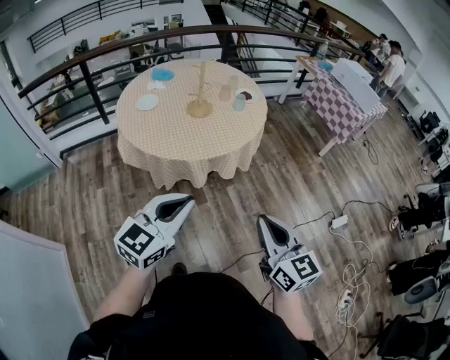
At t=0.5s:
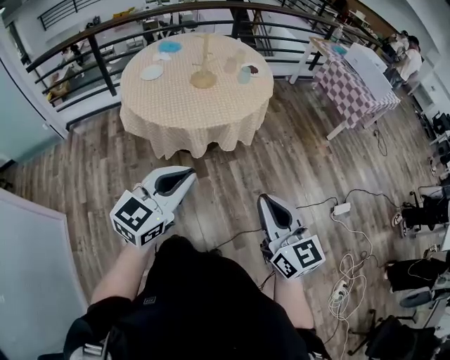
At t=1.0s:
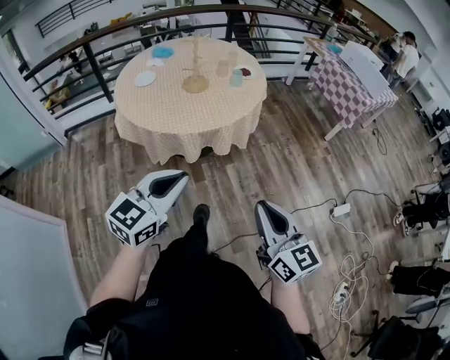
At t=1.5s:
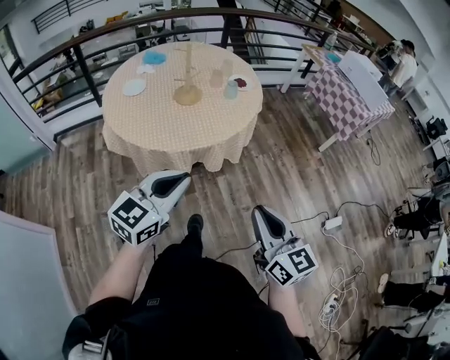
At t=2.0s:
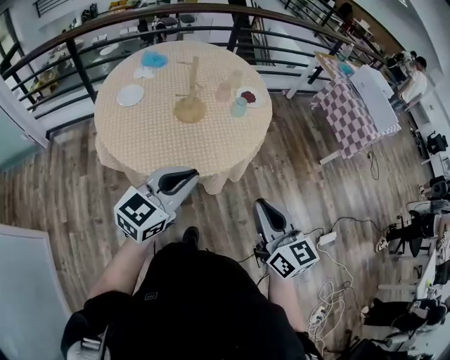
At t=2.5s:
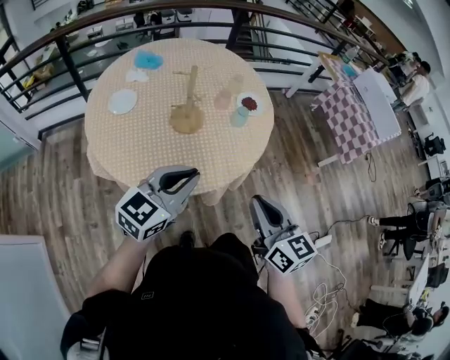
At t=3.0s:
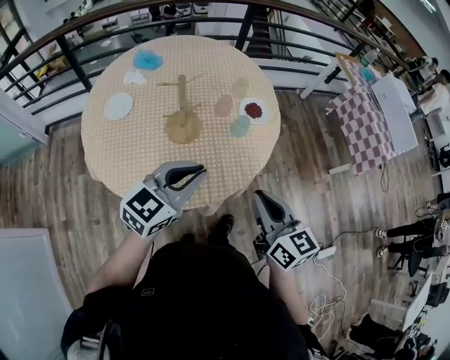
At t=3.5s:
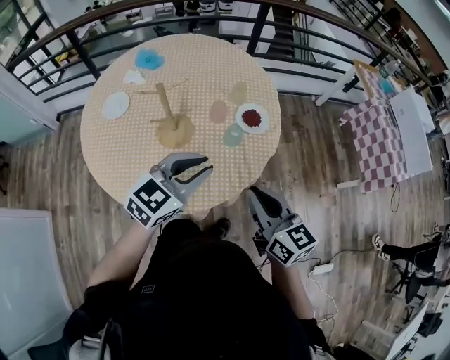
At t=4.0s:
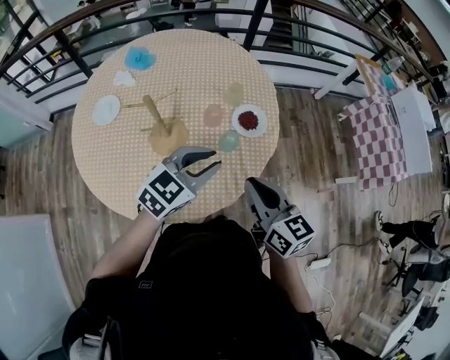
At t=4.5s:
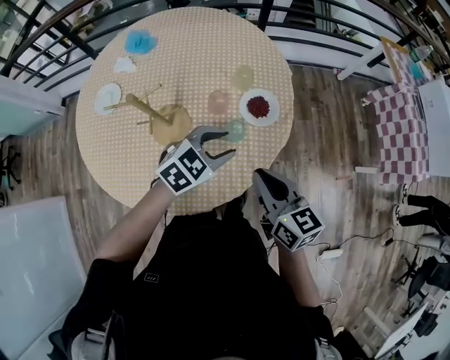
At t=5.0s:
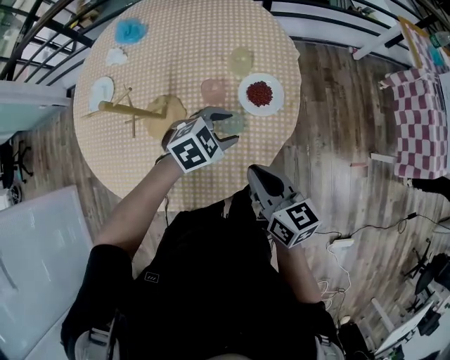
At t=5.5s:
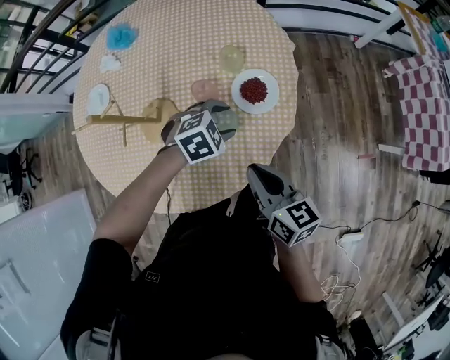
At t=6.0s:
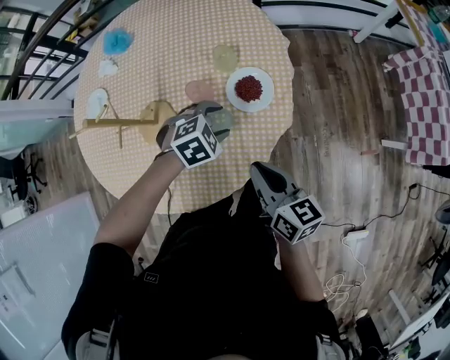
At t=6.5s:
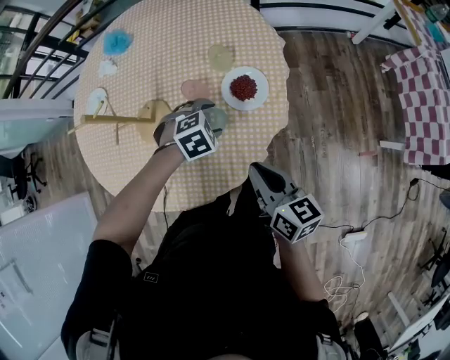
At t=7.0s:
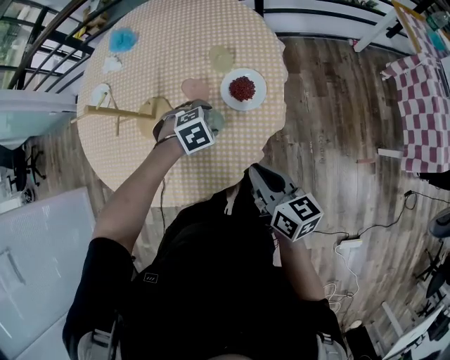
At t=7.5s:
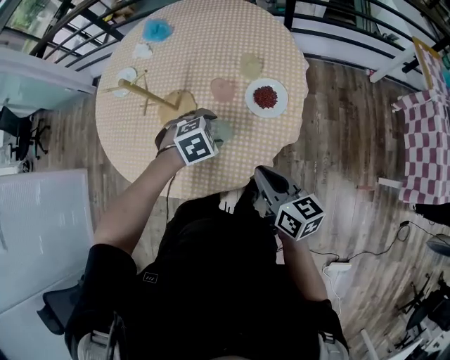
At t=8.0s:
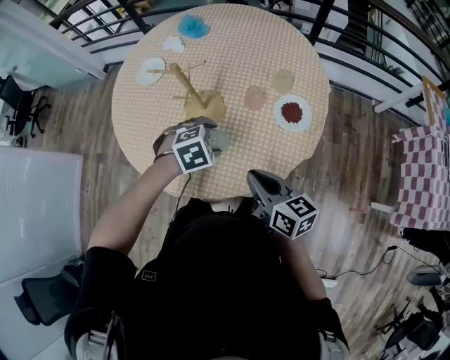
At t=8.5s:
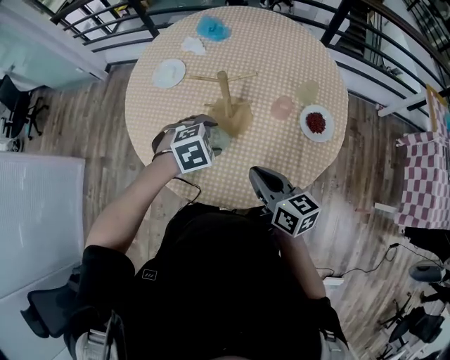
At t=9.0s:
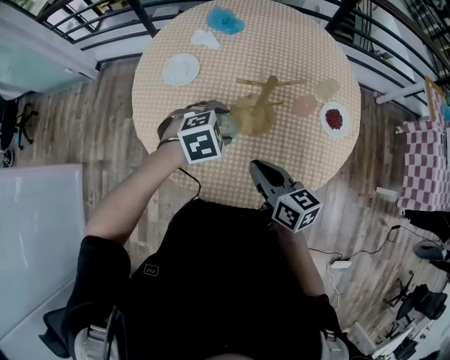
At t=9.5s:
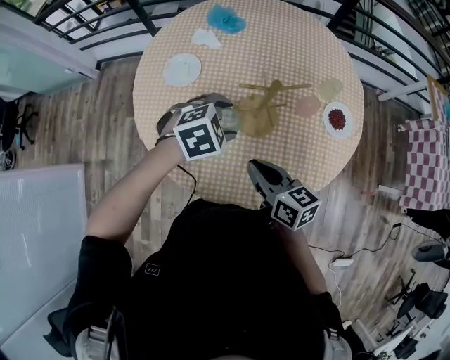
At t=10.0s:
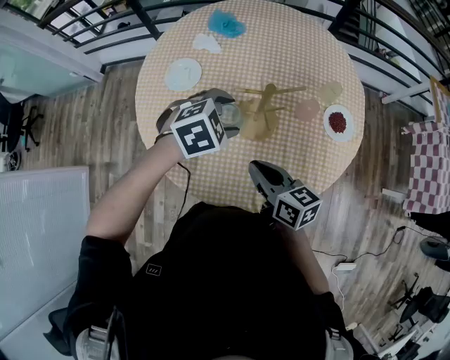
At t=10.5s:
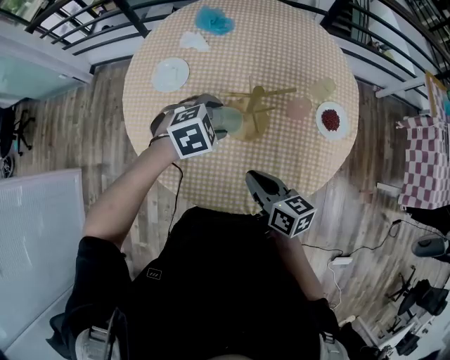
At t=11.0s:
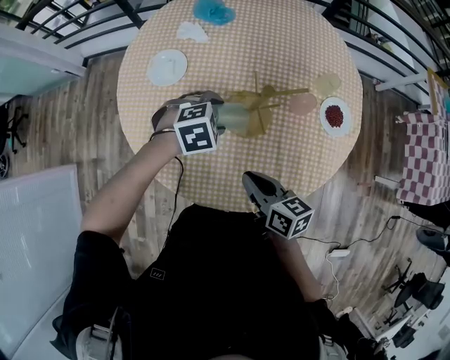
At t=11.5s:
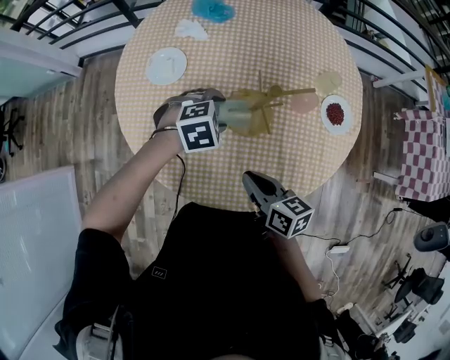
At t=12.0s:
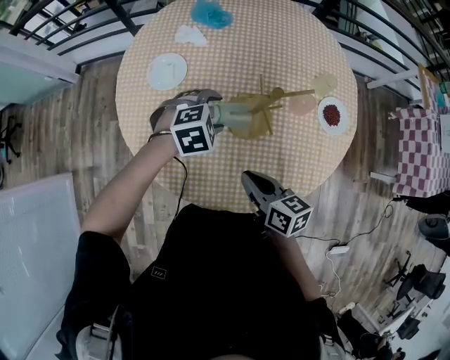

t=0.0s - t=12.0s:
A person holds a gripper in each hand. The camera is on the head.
t=0.0s - t=2.0s: Both grippers move forward, some 25 cm.
t=2.0s - t=4.0s: Both grippers travel together forward, about 35 cm.
t=4.0s - t=6.0s: The left gripper heads downward and forward, covering approximately 25 cm, points its fingers about 40 degrees further downward, and opens up. The right gripper goes about 20 cm downward, to the right and forward.
t=6.0s - t=8.0s: The right gripper moves roughly 15 cm, and changes its angle by about 20 degrees, while the left gripper shifts by approximately 20 cm.
t=8.0s - t=10.0s: The right gripper travels to the left by approximately 25 cm, while the left gripper heads to the left, forward and upward, covering some 20 cm.
t=10.0s - t=12.0s: The right gripper shifts by approximately 5 cm. The left gripper goes roughly 10 cm downward.

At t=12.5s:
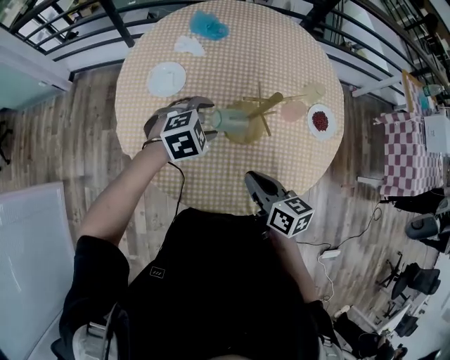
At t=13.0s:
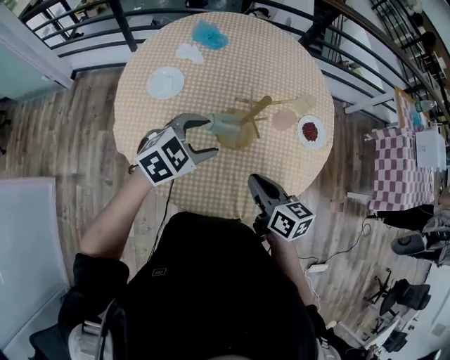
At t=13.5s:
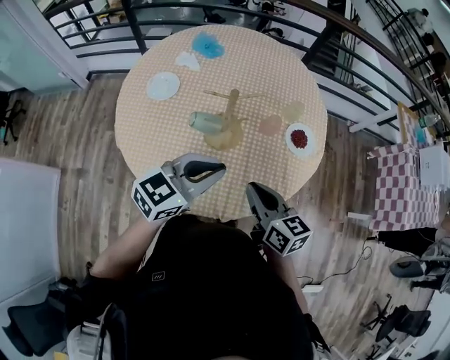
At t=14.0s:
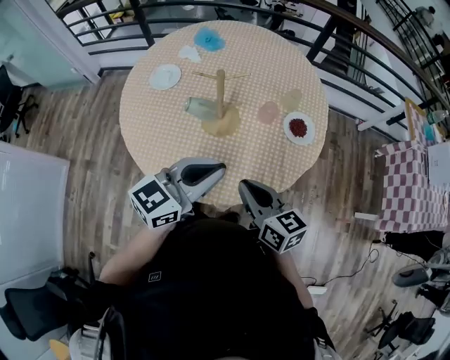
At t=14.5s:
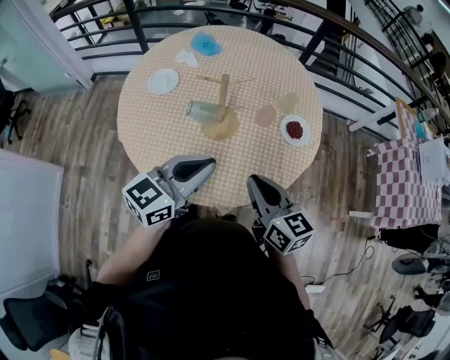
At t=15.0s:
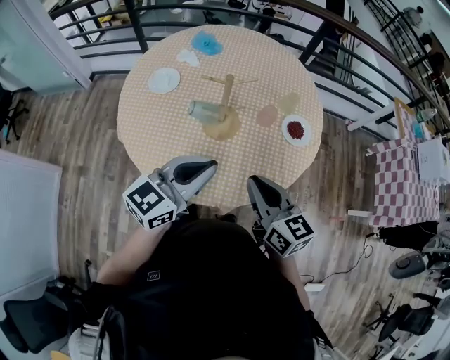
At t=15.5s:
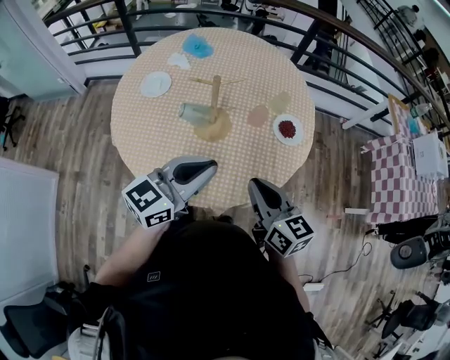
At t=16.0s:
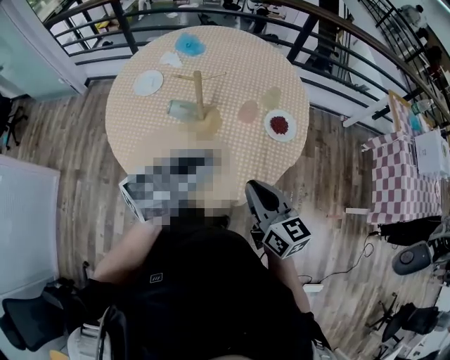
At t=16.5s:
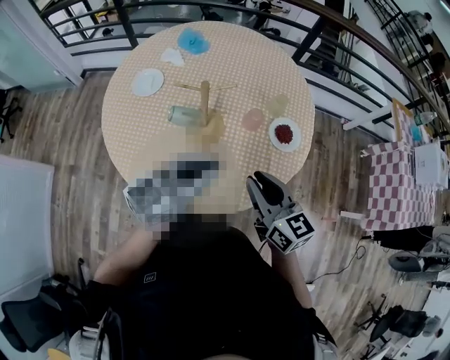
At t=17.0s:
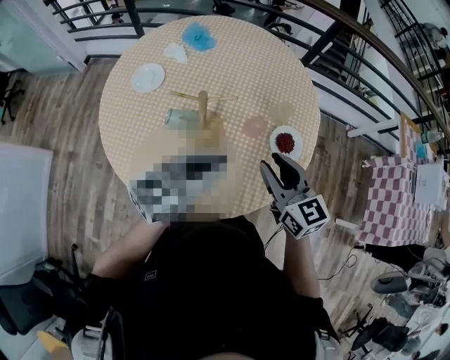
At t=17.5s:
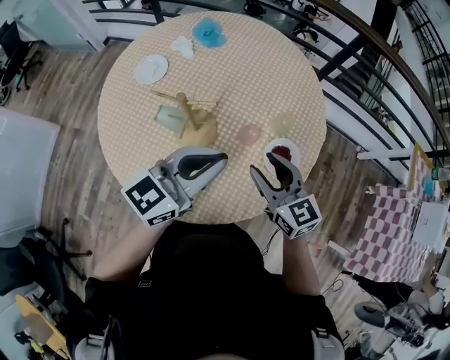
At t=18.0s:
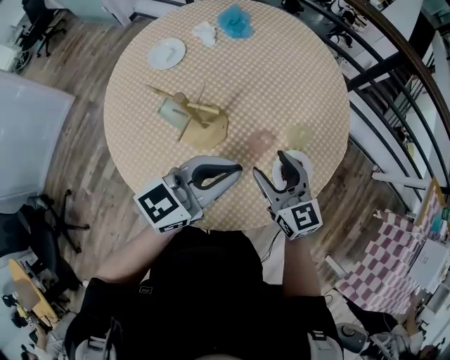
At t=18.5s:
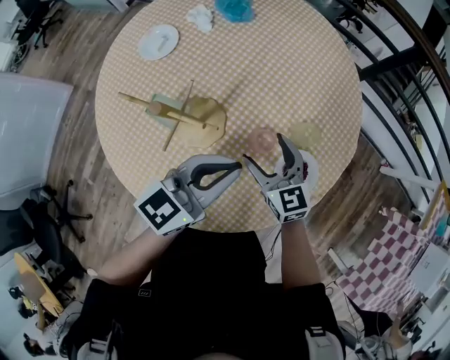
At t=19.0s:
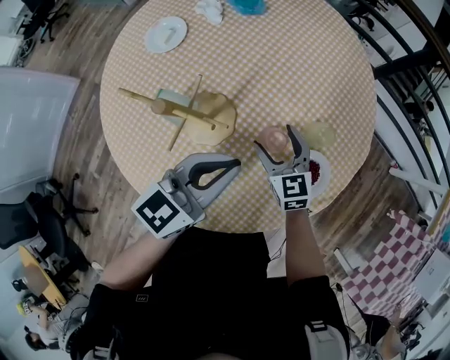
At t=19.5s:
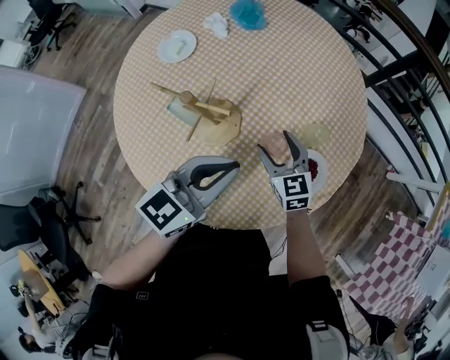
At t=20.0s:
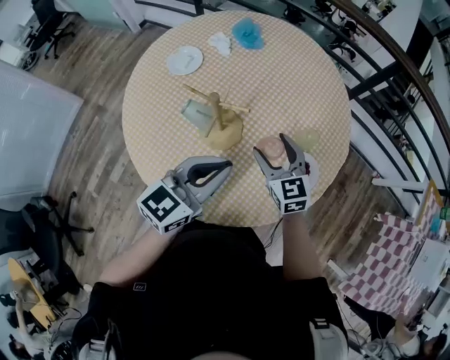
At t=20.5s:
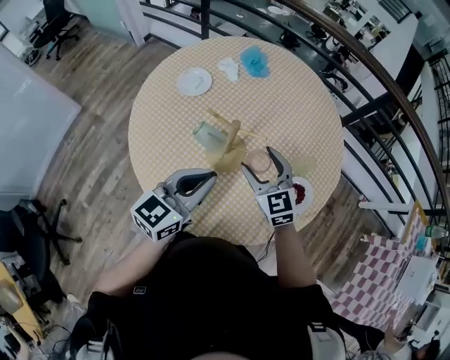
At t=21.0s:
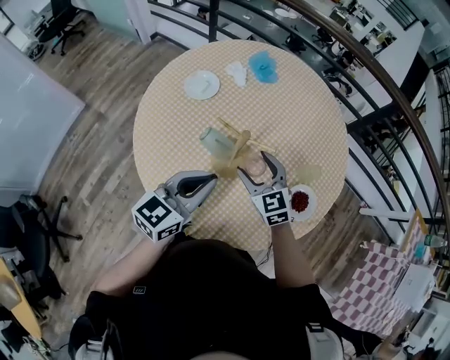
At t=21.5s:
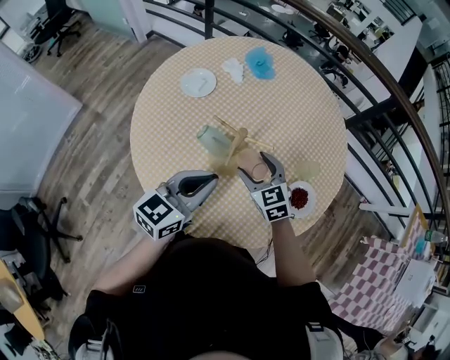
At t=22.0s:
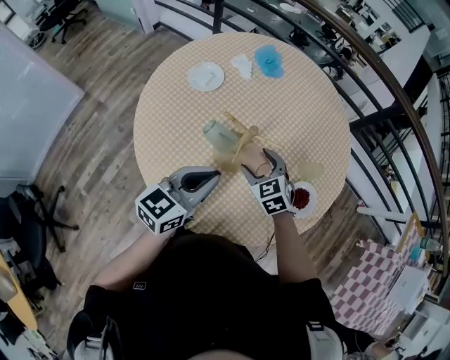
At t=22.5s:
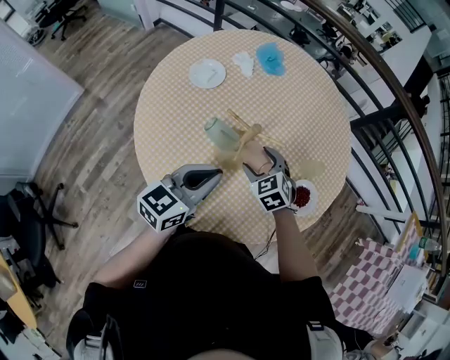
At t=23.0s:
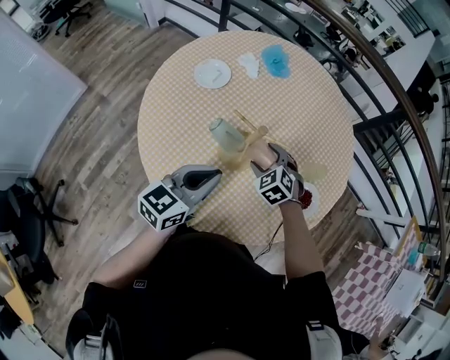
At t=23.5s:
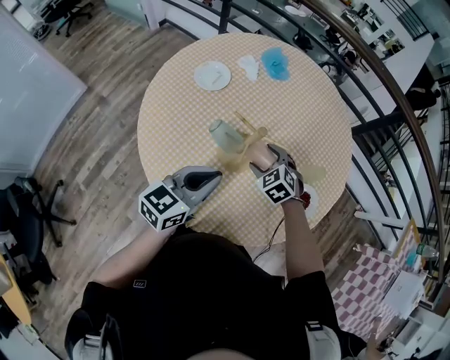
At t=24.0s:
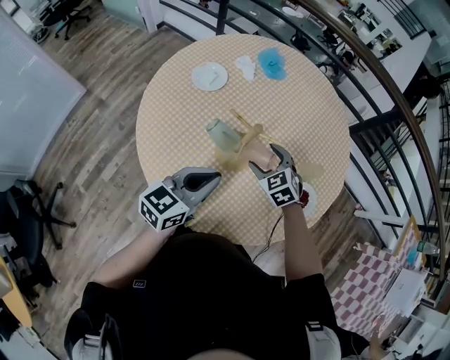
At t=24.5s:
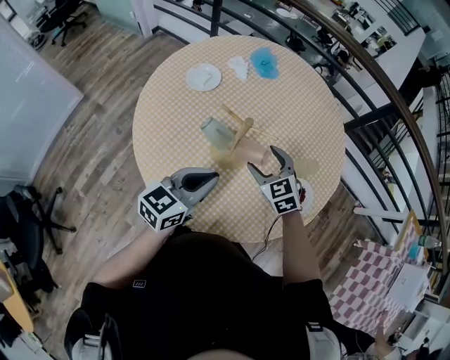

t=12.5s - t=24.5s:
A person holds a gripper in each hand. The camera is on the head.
t=12.5s - t=14.5s: The left gripper is displaced backward, upward and to the right by some 30 cm, tips its fingers upward by about 50 degrees, and closes. The right gripper travels to the right, upward and backward by some 20 cm, and changes its angle by approximately 20 degrees.
t=14.5s - t=16.5s: Both grippers travel together forward, some 5 cm.
t=16.5s - t=18.5s: The right gripper moves forward and downward, approximately 30 cm, changes its angle by roughly 30 degrees, and opens up; the left gripper moves forward, downward and to the right, about 20 cm, and rotates some 20 degrees.
t=18.5s - t=20.5s: The left gripper heads to the left, upward and backward, covering approximately 15 cm; the right gripper moves upward and to the left, roughly 15 cm.
t=20.5s - t=22.5s: The right gripper moves downward, approximately 10 cm, and changes its angle by some 30 degrees.
t=22.5s - t=24.5s: There are only small adjustments of the grippers.

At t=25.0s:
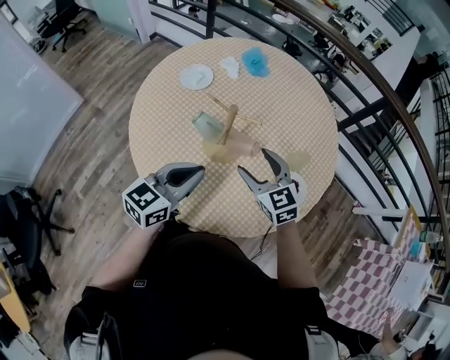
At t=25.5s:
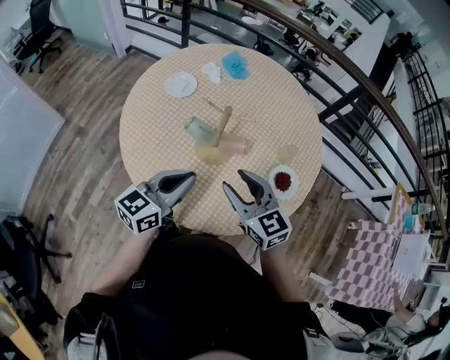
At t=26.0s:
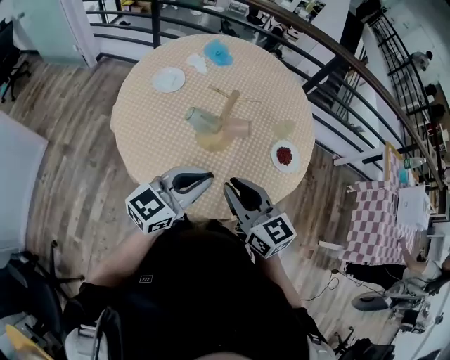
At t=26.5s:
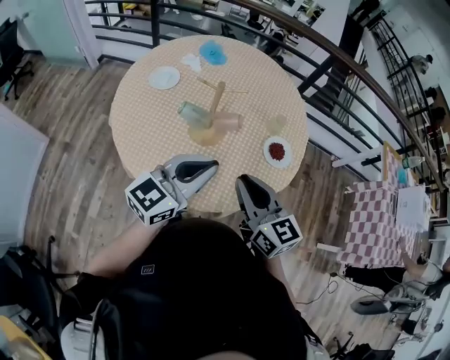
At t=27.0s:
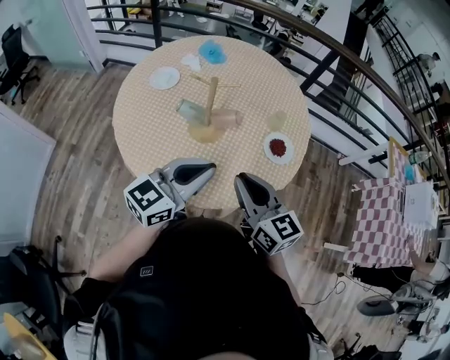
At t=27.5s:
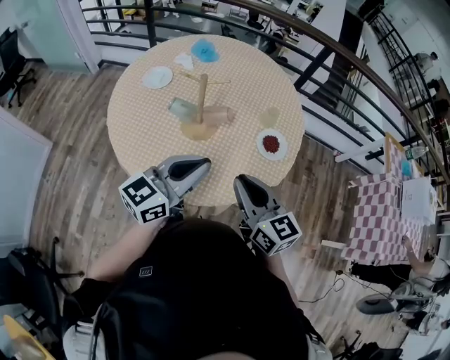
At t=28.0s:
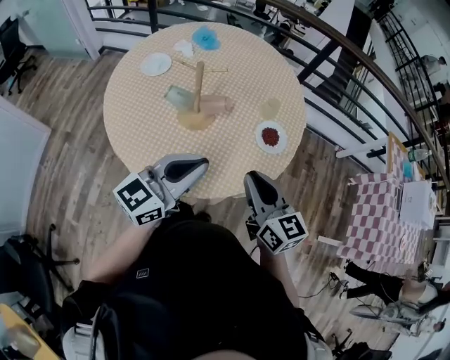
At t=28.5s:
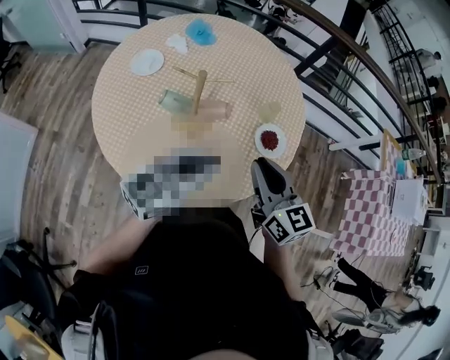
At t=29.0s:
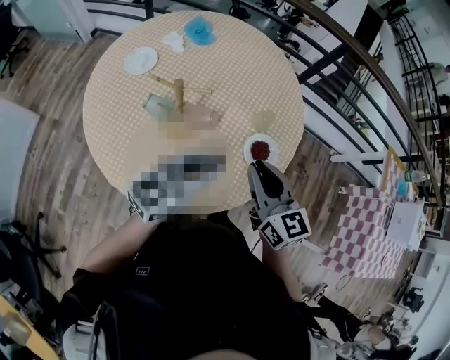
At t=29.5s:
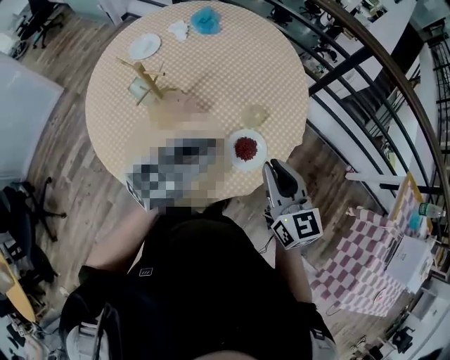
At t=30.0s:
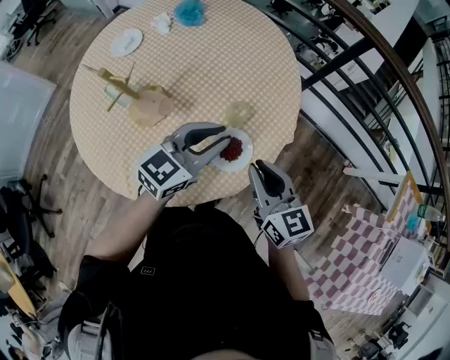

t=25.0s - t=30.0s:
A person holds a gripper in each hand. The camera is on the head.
t=25.0s - t=27.5s: The right gripper is displaced backward by approximately 20 cm, turns by about 40 degrees, and closes, while the left gripper shifts roughly 15 cm backward, upward and to the right, and changes its angle by approximately 30 degrees.
t=27.5s - t=30.0s: The grippers both shift forward and to the right by about 35 cm.
